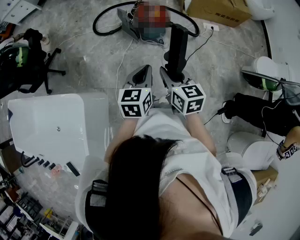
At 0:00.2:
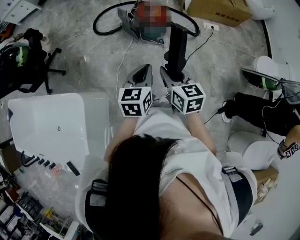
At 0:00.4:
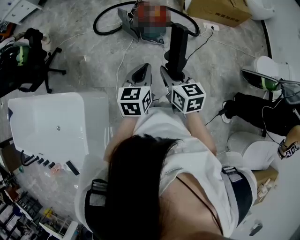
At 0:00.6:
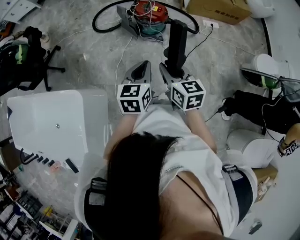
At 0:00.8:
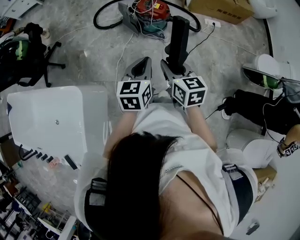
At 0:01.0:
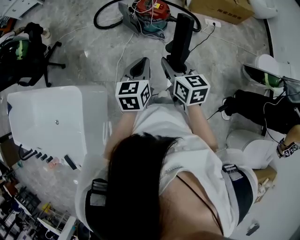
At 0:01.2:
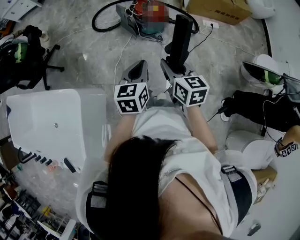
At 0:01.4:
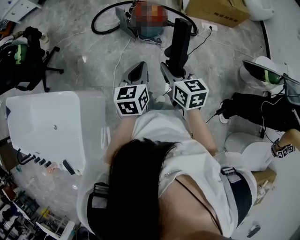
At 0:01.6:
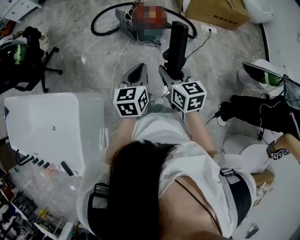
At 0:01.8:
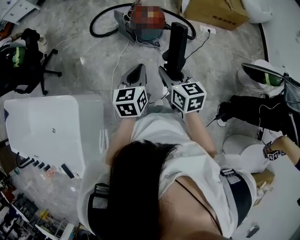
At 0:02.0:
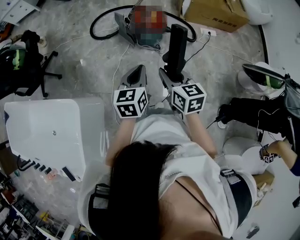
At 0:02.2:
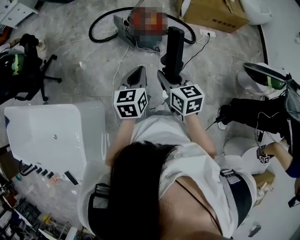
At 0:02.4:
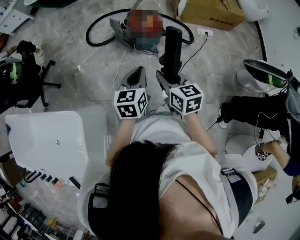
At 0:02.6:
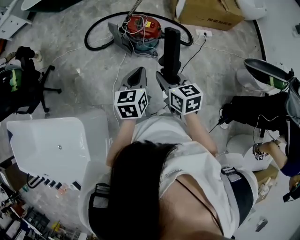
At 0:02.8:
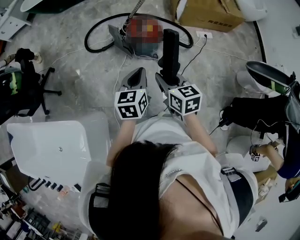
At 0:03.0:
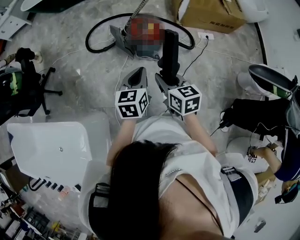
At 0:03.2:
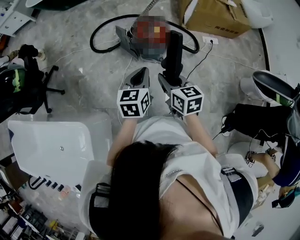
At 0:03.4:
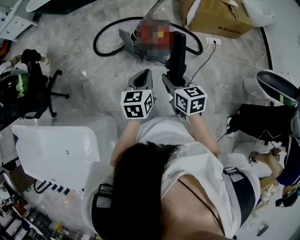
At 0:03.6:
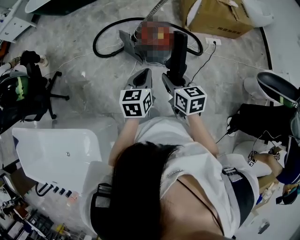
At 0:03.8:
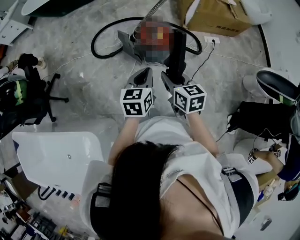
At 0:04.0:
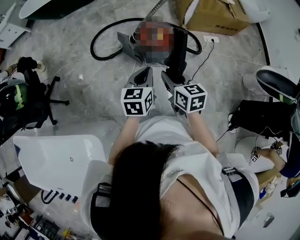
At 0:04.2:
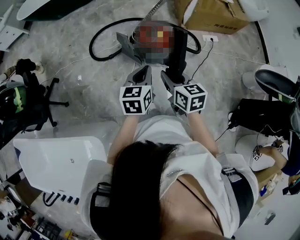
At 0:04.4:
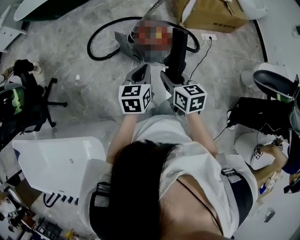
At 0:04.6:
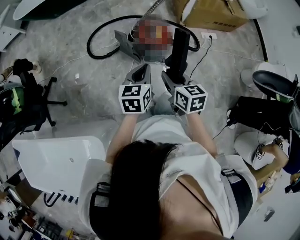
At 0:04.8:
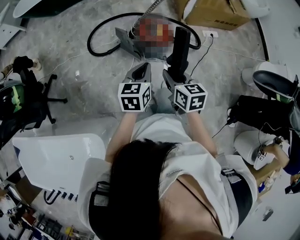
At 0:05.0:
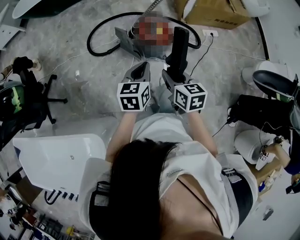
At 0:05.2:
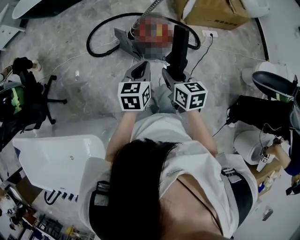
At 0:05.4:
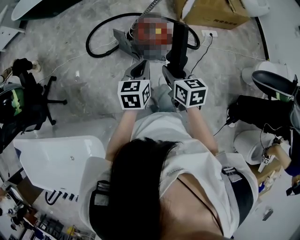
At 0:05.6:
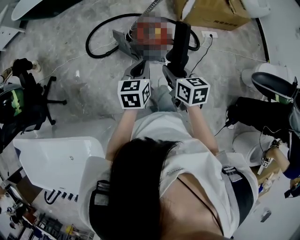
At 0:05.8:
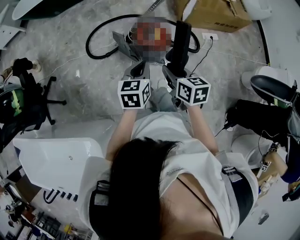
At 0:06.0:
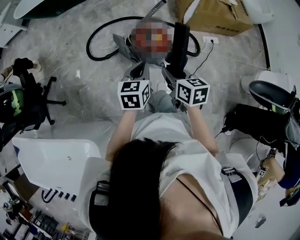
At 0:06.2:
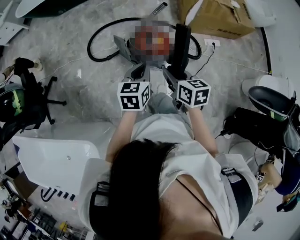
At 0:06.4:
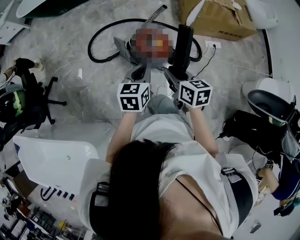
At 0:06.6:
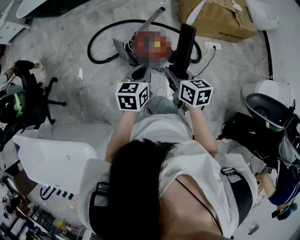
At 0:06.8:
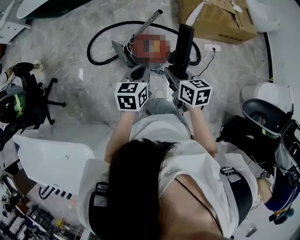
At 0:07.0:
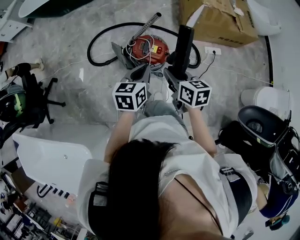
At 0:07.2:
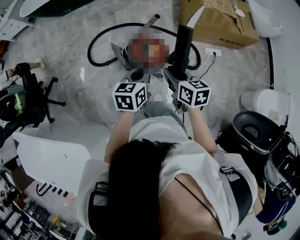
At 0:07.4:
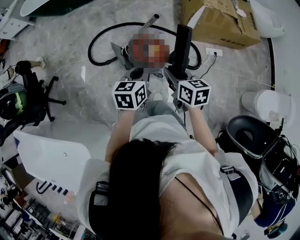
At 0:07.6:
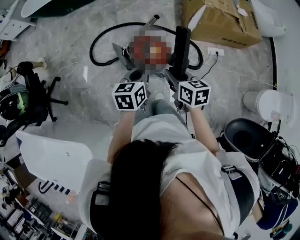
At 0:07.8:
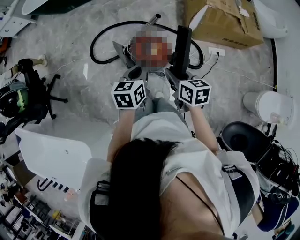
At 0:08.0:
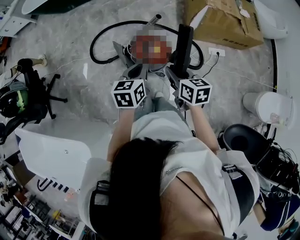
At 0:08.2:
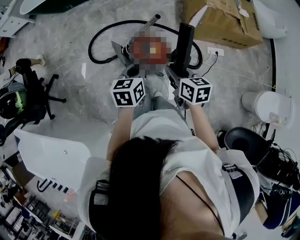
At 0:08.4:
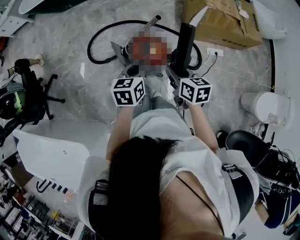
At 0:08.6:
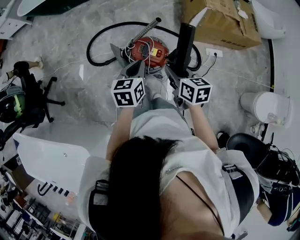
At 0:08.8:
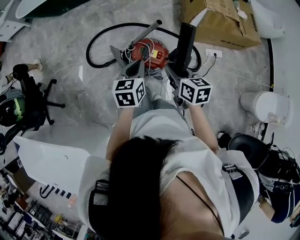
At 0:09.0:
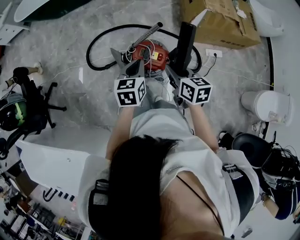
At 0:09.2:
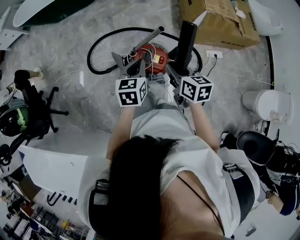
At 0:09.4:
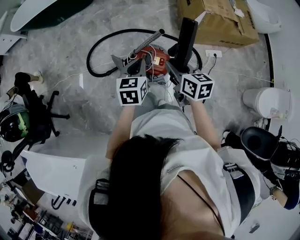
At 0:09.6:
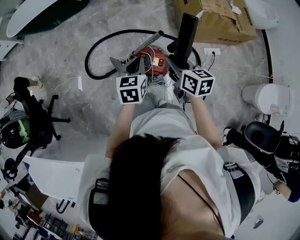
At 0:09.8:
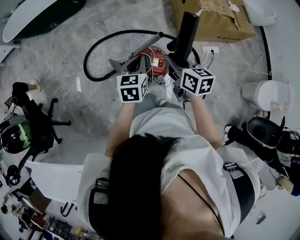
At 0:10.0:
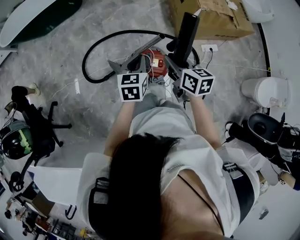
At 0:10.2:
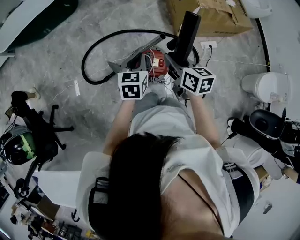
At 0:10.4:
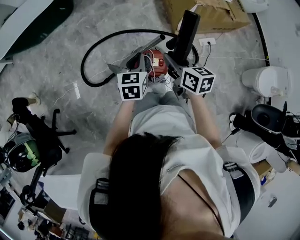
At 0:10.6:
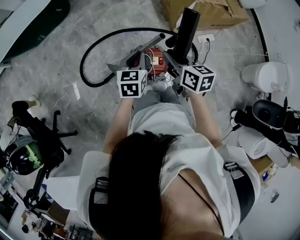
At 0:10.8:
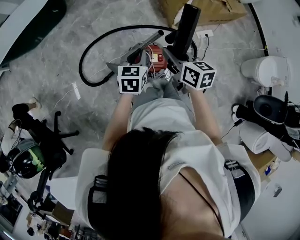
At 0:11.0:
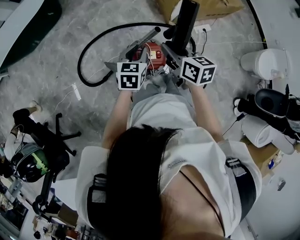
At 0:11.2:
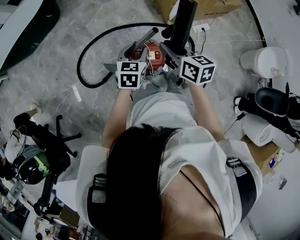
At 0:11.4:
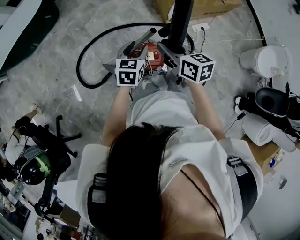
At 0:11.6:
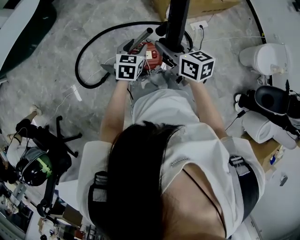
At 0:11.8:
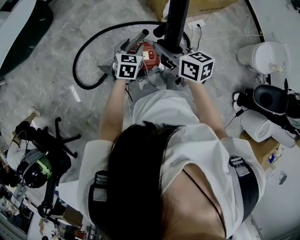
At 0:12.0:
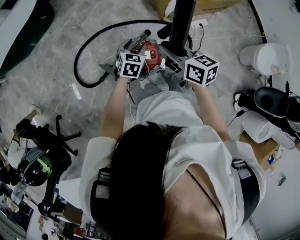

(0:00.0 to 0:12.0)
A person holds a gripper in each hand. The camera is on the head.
0:00.0 - 0:01.6: There are only small adjustments of the grippers.
0:01.6 - 0:03.0: Both grippers move forward, roughly 15 cm.
0:03.0 - 0:04.4: Both grippers move forward and to the left, about 10 cm.
0:04.4 - 0:06.0: The grippers both shift forward by some 5 cm.
0:06.0 - 0:07.6: Both grippers move to the right and forward, some 15 cm.
0:07.6 - 0:09.0: The grippers both shift forward by some 10 cm.
0:09.0 - 0:10.4: The grippers both shift forward by some 10 cm.
0:10.4 - 0:12.0: The left gripper goes roughly 15 cm downward, forward and to the right, turns by roughly 30 degrees, and opens its fingers.

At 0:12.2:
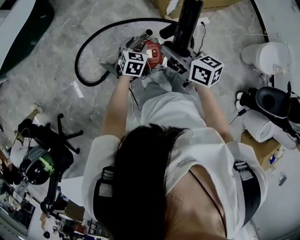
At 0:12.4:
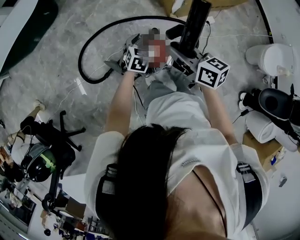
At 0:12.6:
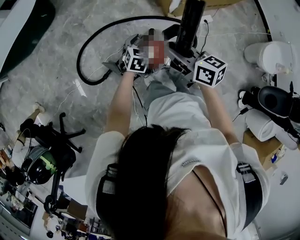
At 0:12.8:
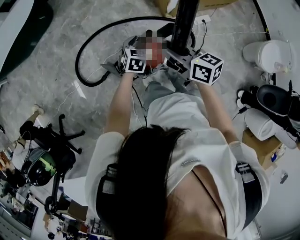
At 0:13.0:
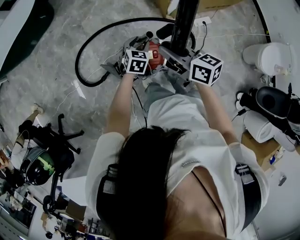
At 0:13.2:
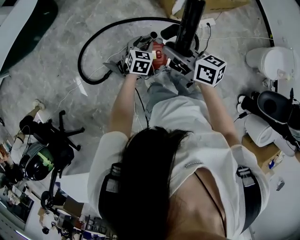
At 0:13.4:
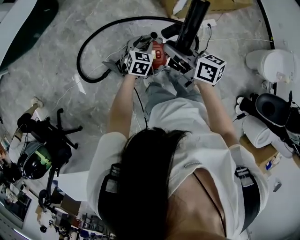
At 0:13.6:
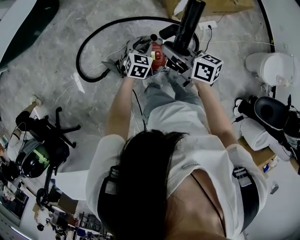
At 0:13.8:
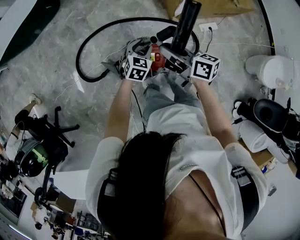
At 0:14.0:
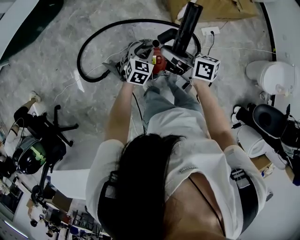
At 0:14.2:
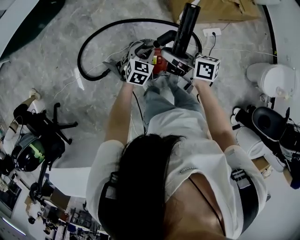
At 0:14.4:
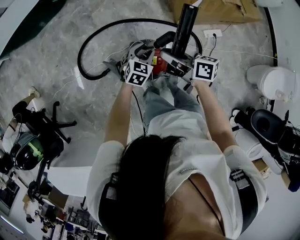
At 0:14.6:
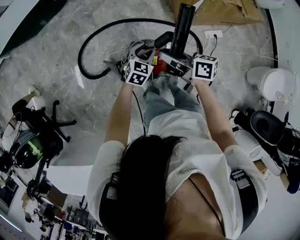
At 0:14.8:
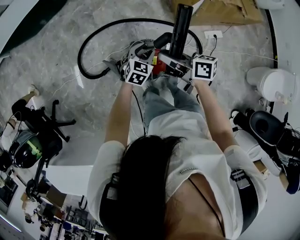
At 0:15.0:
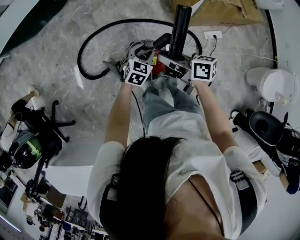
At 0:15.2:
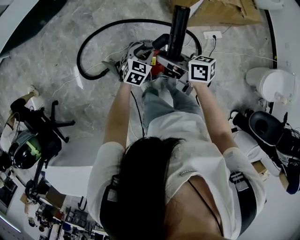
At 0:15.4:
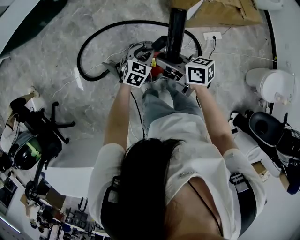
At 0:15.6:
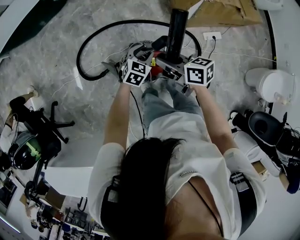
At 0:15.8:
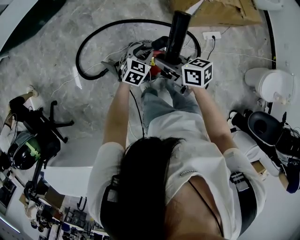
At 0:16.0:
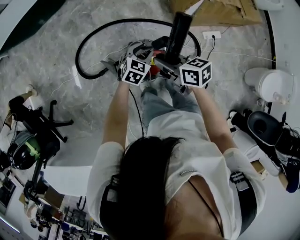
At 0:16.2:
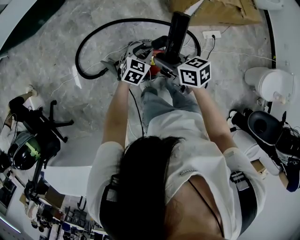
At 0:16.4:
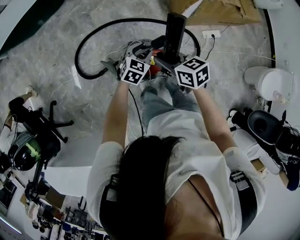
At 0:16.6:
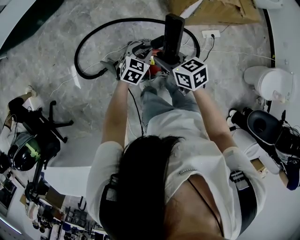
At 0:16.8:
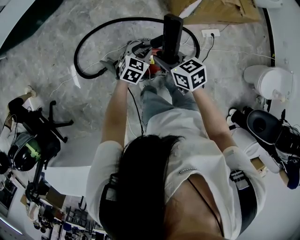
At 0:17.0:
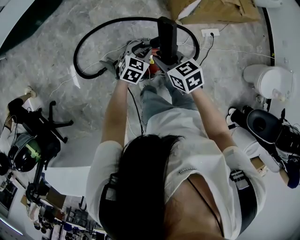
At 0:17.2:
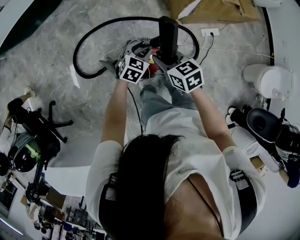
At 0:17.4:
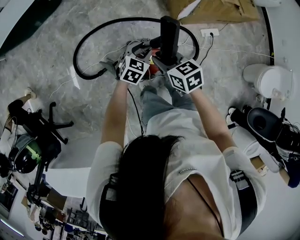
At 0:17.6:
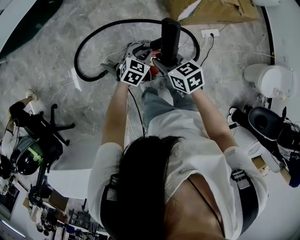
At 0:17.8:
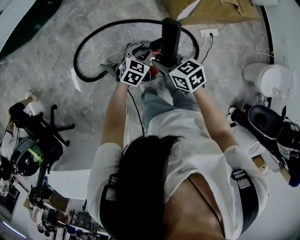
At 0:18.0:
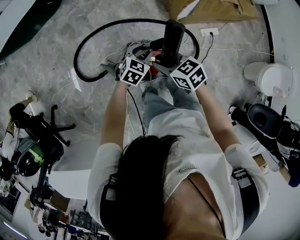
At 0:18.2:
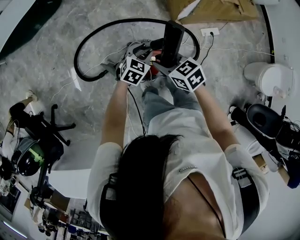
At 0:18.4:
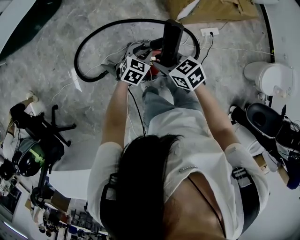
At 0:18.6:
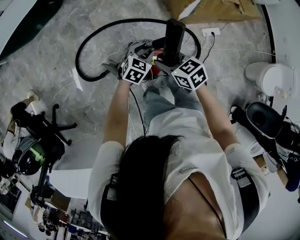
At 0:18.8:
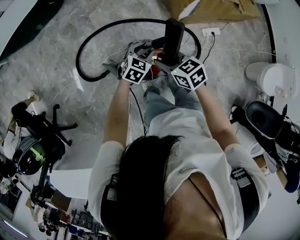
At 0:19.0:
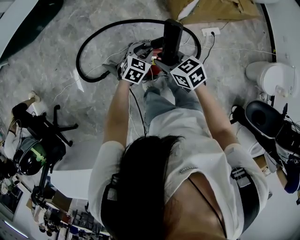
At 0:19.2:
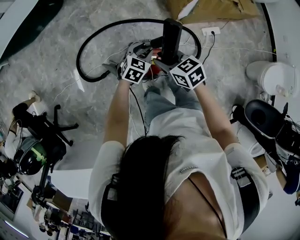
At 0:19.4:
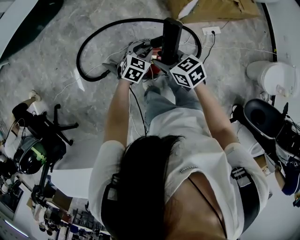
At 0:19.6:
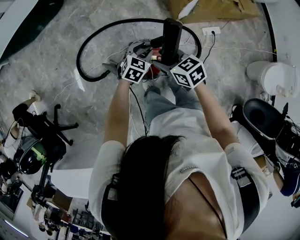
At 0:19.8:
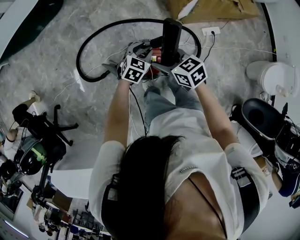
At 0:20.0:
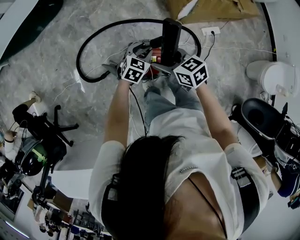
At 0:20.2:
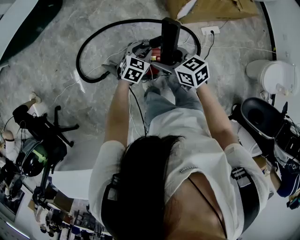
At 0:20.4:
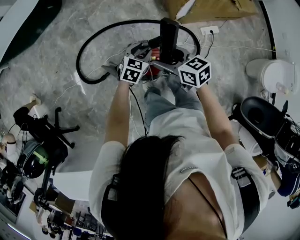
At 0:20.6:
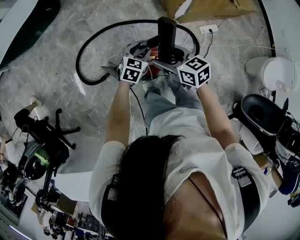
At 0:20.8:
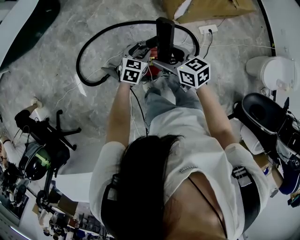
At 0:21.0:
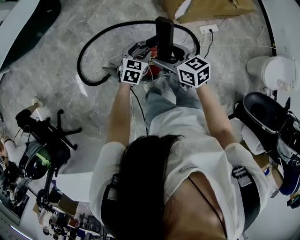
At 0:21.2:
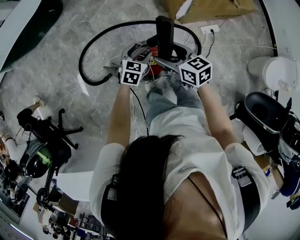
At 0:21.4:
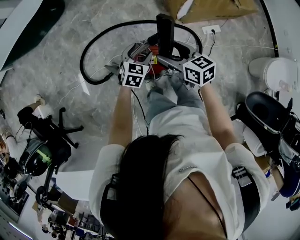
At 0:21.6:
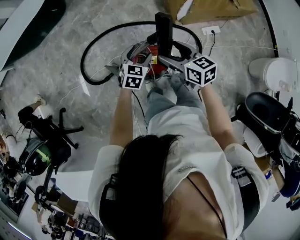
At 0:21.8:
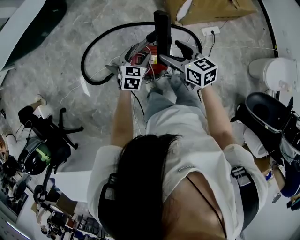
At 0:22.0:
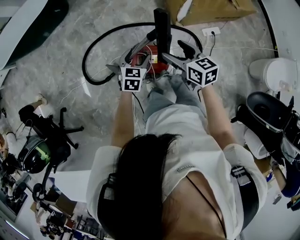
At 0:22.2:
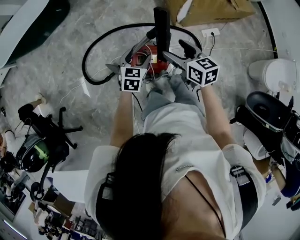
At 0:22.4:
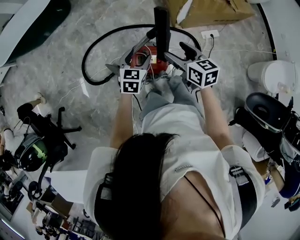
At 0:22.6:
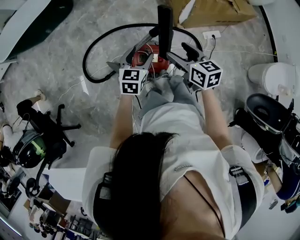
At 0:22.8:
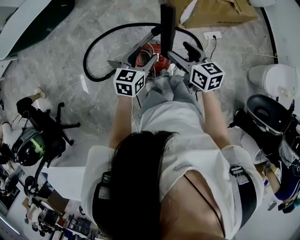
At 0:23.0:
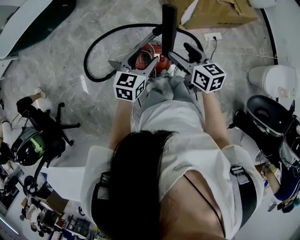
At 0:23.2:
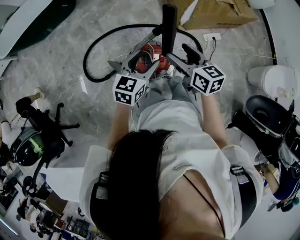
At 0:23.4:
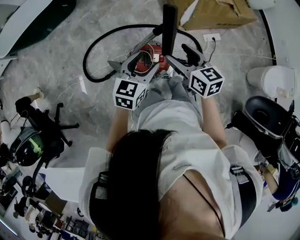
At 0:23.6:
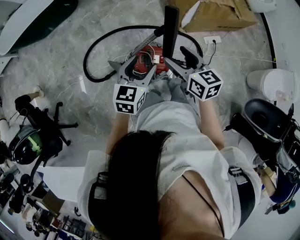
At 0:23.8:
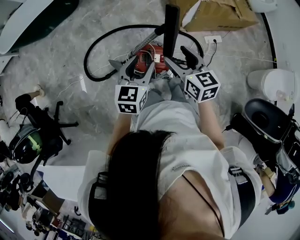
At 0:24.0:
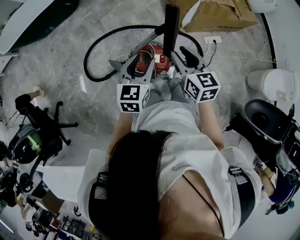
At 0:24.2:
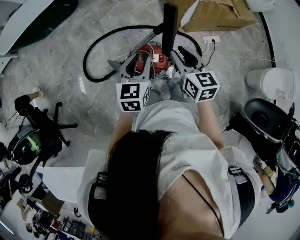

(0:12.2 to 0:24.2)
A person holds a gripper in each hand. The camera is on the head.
0:12.2 - 0:13.8: The right gripper moves about 5 cm.
0:13.8 - 0:15.2: The grippers stay close to where they were, moving slightly.
0:15.2 - 0:16.6: The right gripper rotates approximately 30 degrees.
0:16.6 - 0:18.2: The grippers make only small movements.
0:18.2 - 0:19.8: The right gripper opens its fingers.
0:19.8 - 0:21.2: The left gripper opens up.
0:21.2 - 0:22.6: The right gripper changes place by roughly 5 cm. Meanwhile the left gripper travels upward and backward by about 10 cm.
0:22.6 - 0:24.2: The right gripper moves upward, about 5 cm, and closes its fingers. Meanwhile the left gripper travels upward and backward by some 10 cm, and closes up.
